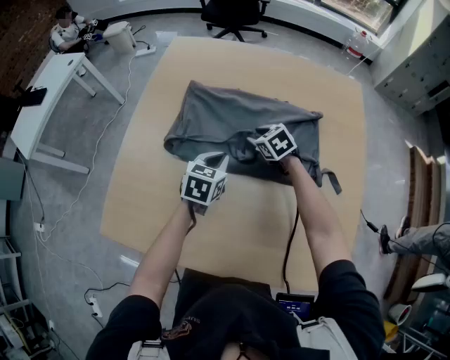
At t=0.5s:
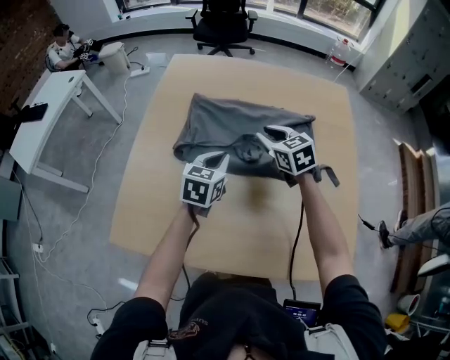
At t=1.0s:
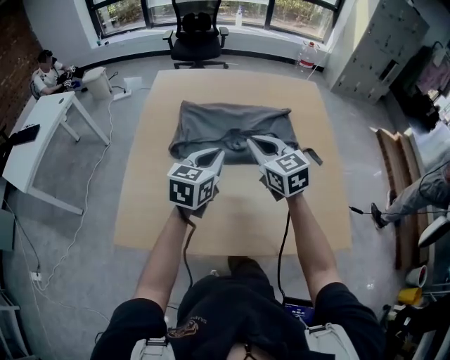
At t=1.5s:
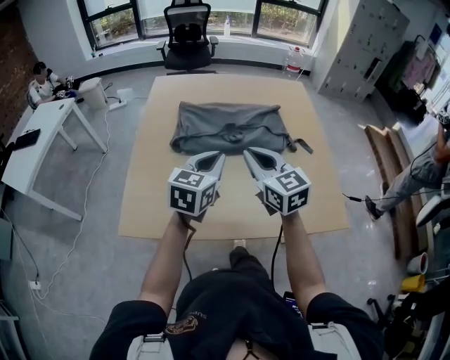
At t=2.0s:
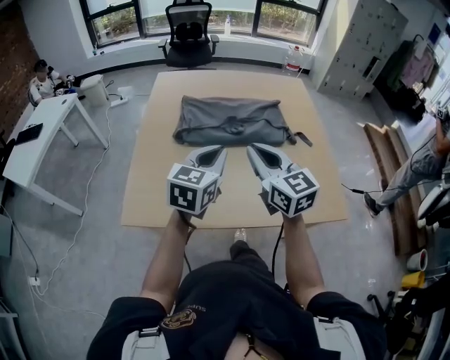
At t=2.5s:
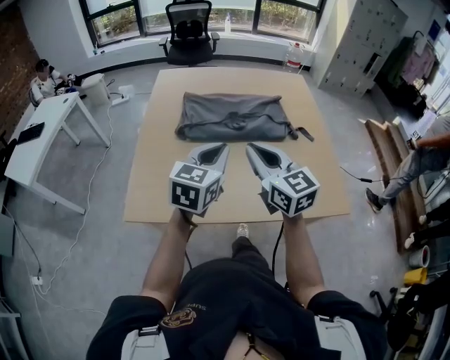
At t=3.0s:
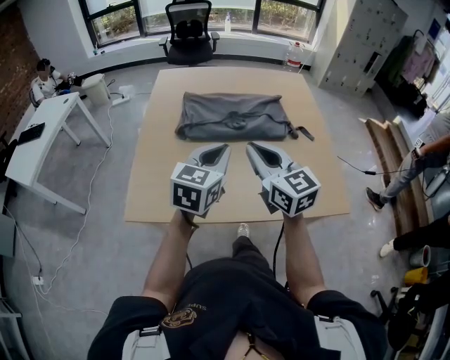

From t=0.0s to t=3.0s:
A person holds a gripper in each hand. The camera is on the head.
From t=0.0s to t=1.5s: Both grippers move backward and upward, about 35 cm. The right gripper angles its fingers upward, by some 40 degrees, and closes. Meanwhile the left gripper turns by about 30 degrees.
From t=1.5s to t=3.0s: Both grippers move backward, roughly 5 cm.

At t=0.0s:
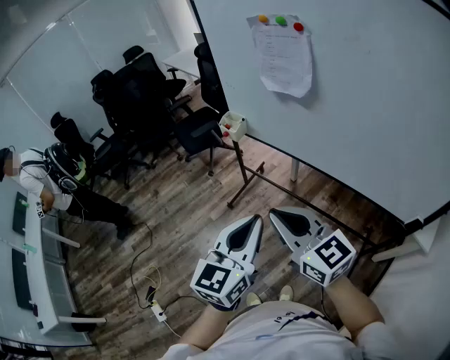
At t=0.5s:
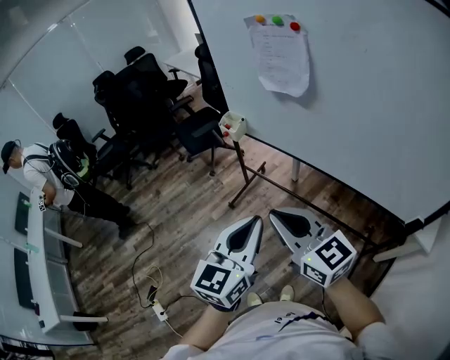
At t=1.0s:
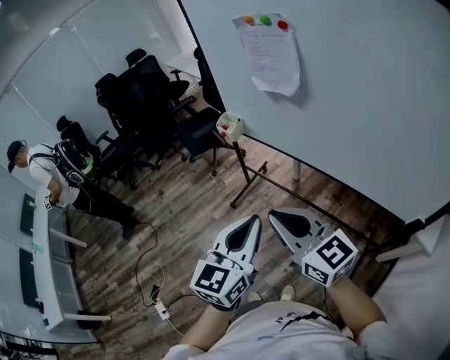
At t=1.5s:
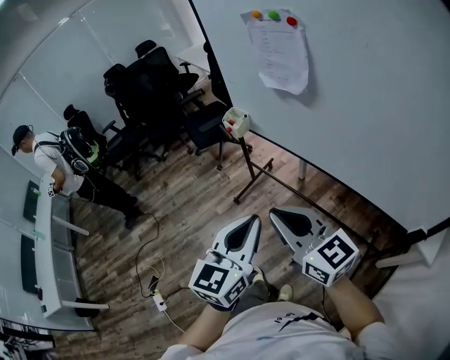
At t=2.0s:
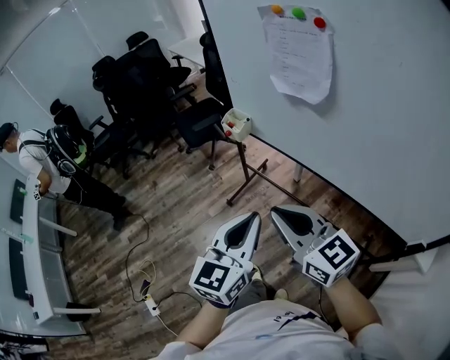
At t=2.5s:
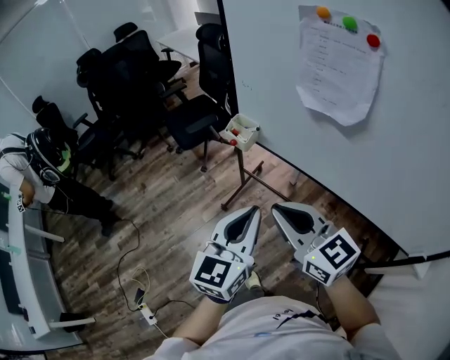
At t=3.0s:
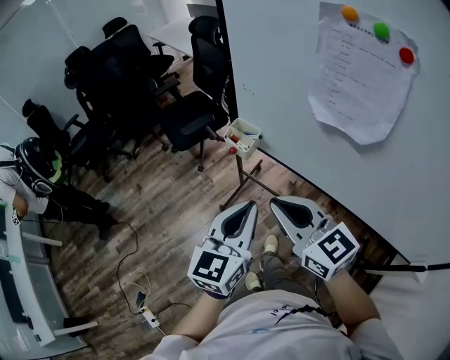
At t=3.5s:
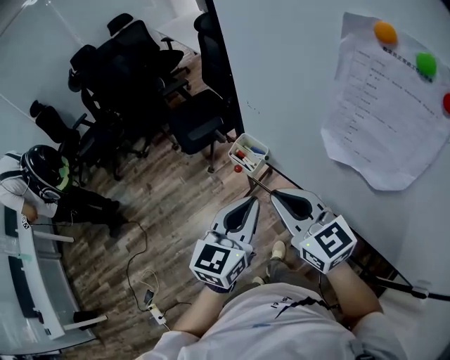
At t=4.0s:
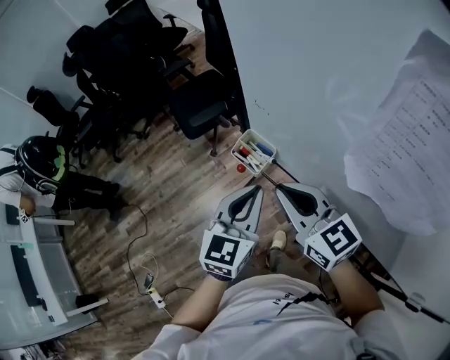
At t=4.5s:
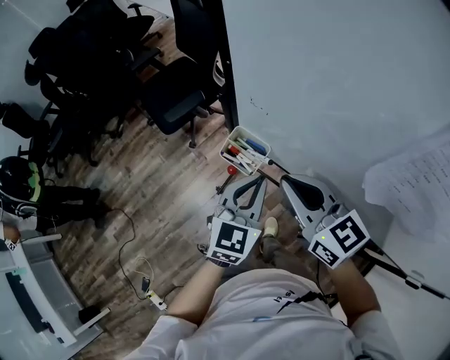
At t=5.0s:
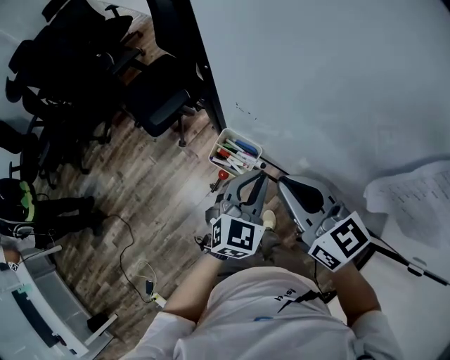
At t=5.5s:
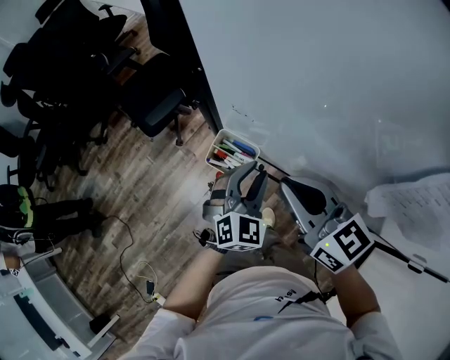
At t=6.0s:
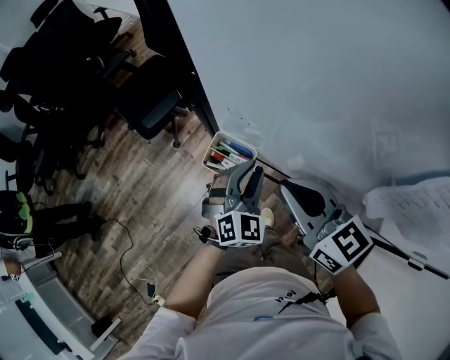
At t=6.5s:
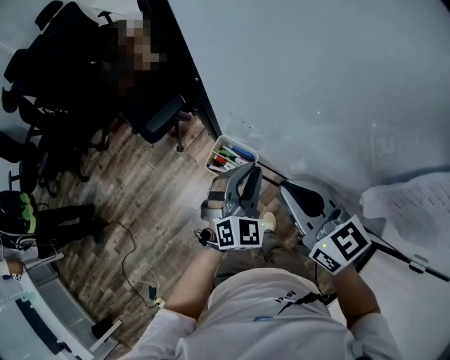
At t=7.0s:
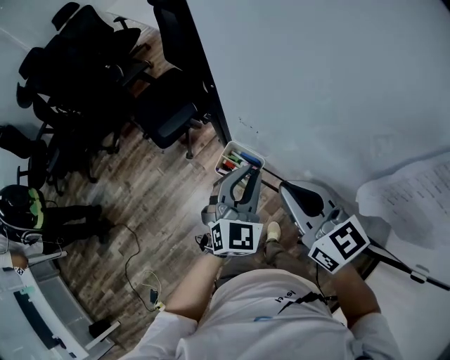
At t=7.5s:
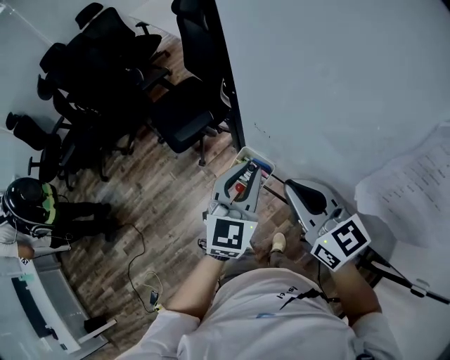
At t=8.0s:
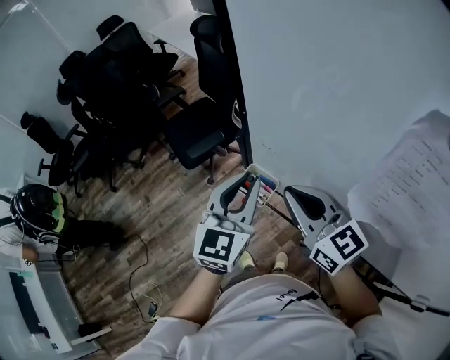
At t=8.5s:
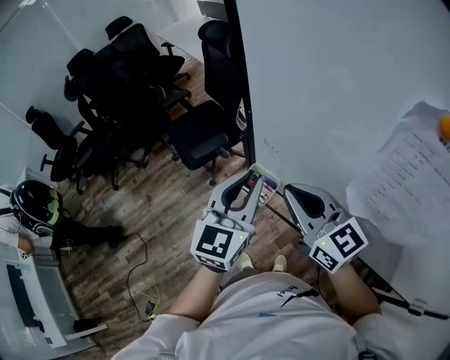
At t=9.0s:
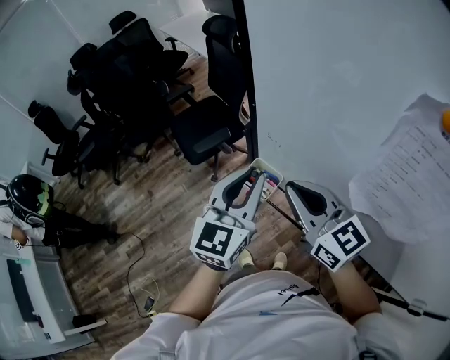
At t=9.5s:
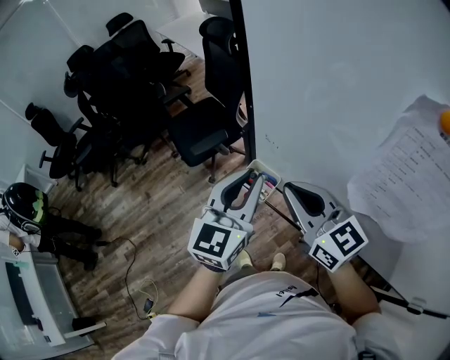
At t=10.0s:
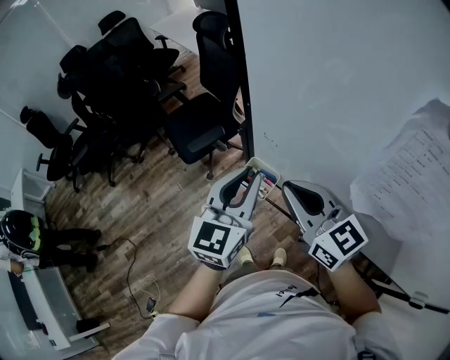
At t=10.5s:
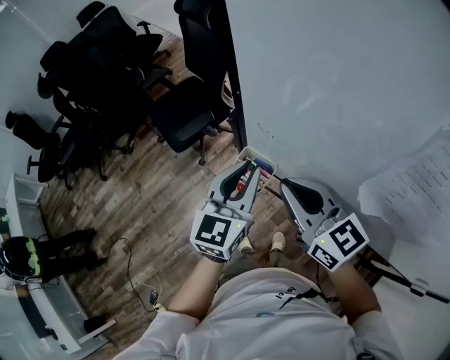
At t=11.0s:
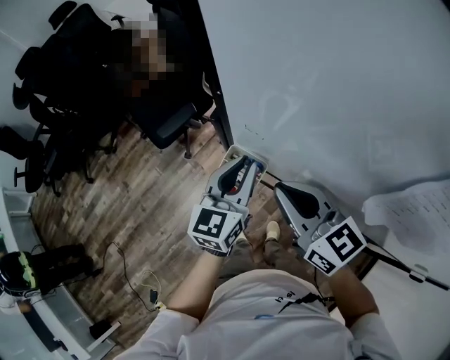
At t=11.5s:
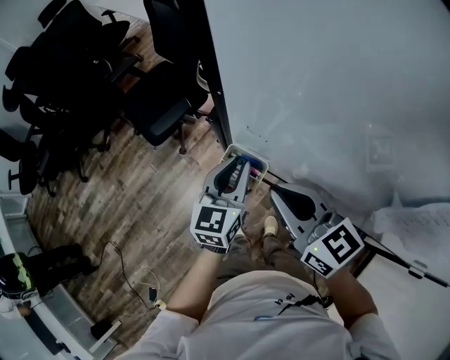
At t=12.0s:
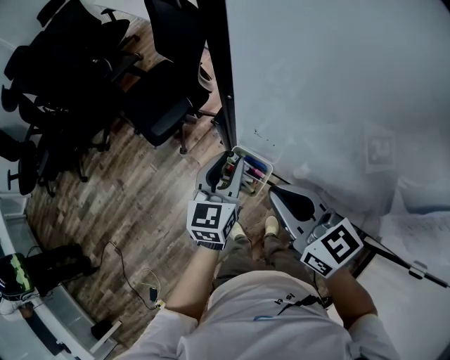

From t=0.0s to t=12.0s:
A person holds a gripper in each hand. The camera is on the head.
From t=0.0s to t=2.0s: Both grippers travel together forward, about 10 cm.
From t=2.0s to t=4.0s: The grippers both shift forward by approximately 40 cm.
From t=4.0s to t=6.0s: The right gripper moves forward, some 5 cm; the left gripper moves downward and forward, roughly 15 cm, rotates approximately 40 degrees, and opens.
From t=6.0s to t=8.0s: The right gripper is displaced upward by roughly 10 cm; the left gripper is displaced upward by roughly 20 cm, and turns by roughly 40 degrees.
From t=8.0s to t=10.0s: There are only small adjustments of the grippers.
From t=10.0s to t=12.0s: The left gripper shifts roughly 20 cm downward and forward. Meanwhile the right gripper is displaced downward by some 10 cm.

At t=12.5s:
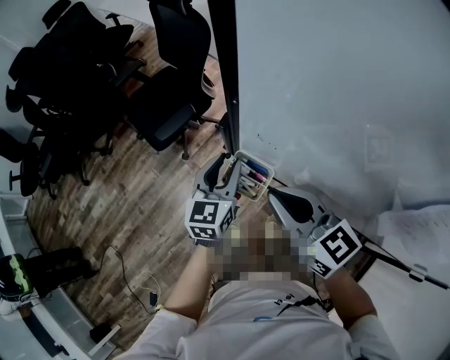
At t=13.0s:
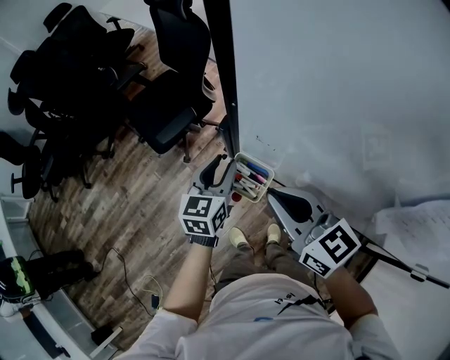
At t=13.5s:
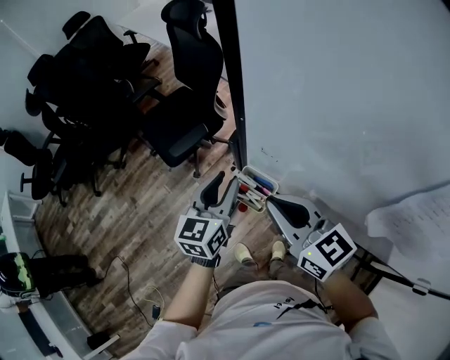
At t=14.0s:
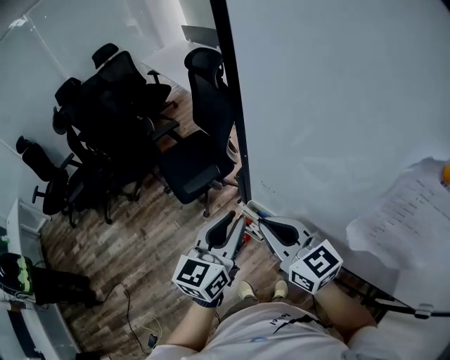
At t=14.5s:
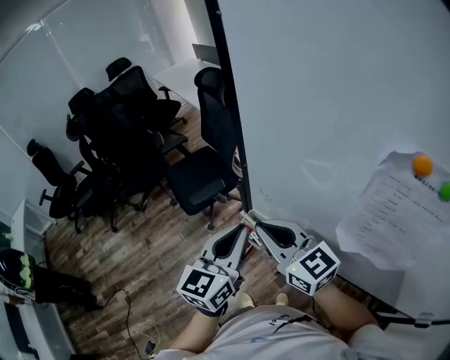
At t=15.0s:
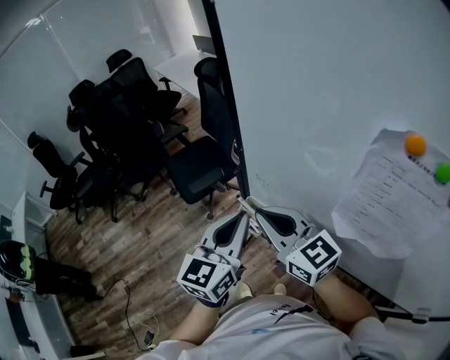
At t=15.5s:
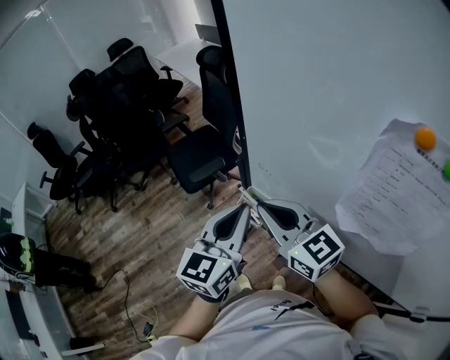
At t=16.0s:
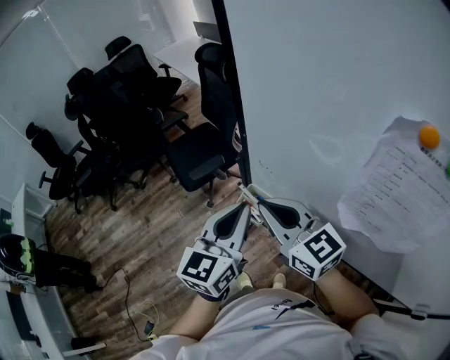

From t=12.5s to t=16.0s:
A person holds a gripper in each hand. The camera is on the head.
From t=12.5s to t=14.5s: The left gripper travels upward and backward by about 25 cm, and closes its fingers. The right gripper is displaced upward by some 10 cm.
From t=14.5s to t=16.0s: The grippers move only a little.

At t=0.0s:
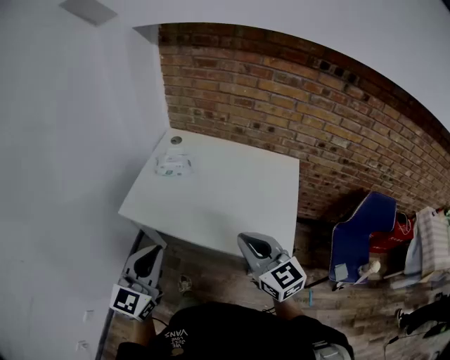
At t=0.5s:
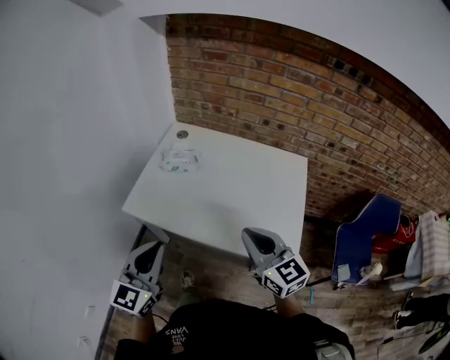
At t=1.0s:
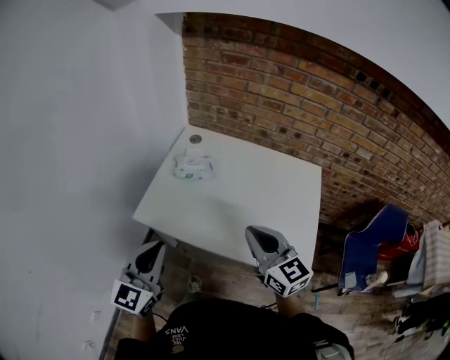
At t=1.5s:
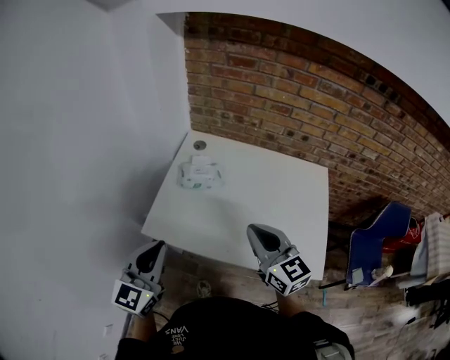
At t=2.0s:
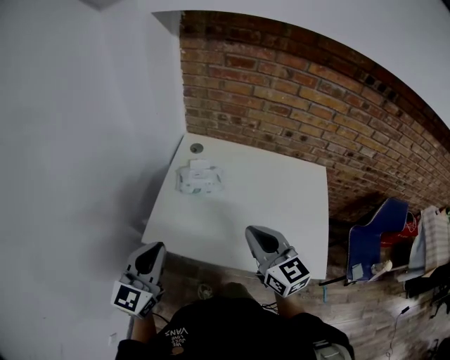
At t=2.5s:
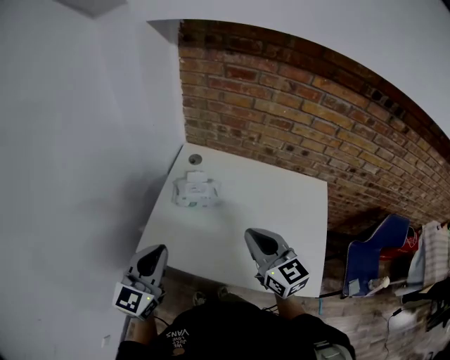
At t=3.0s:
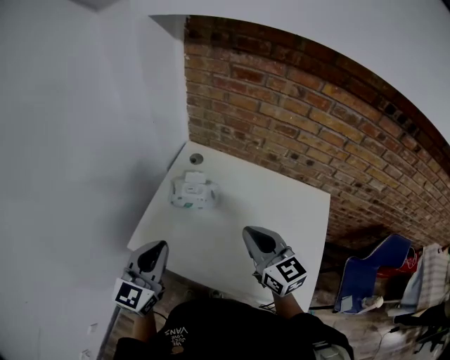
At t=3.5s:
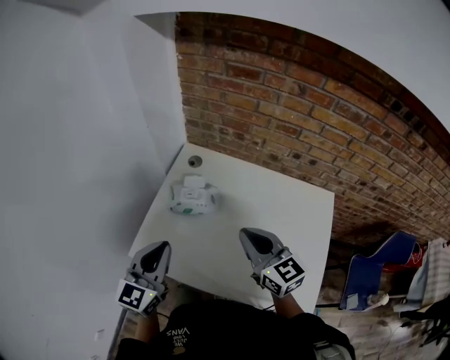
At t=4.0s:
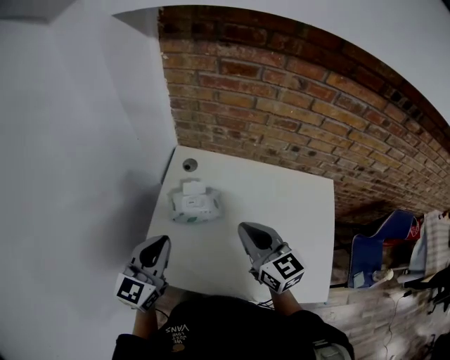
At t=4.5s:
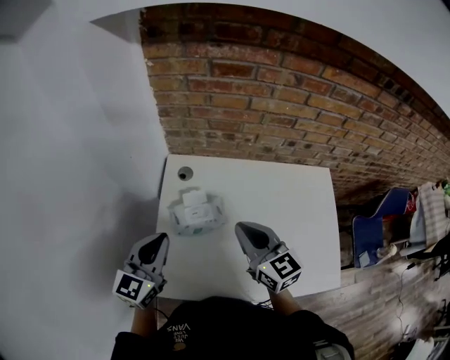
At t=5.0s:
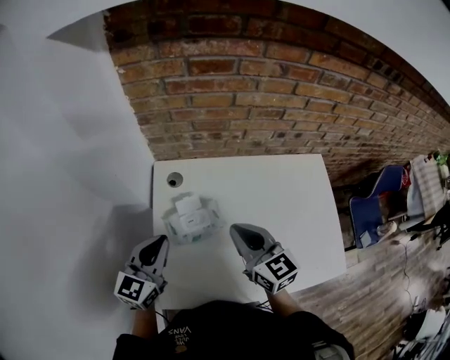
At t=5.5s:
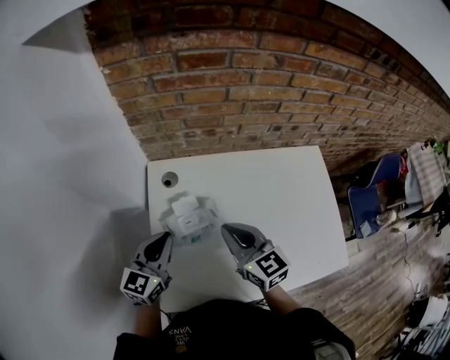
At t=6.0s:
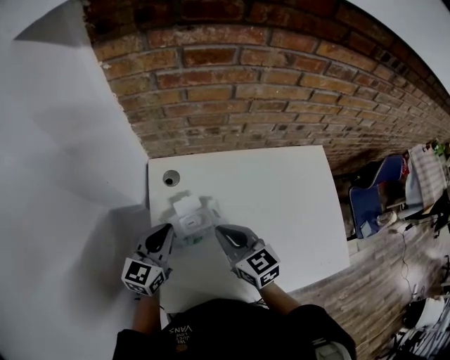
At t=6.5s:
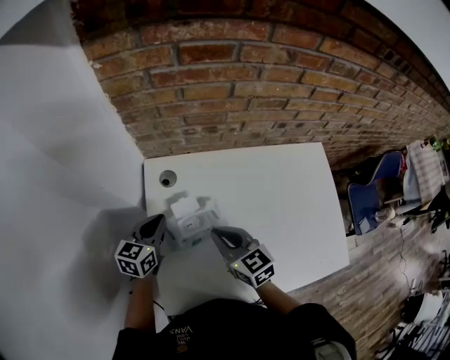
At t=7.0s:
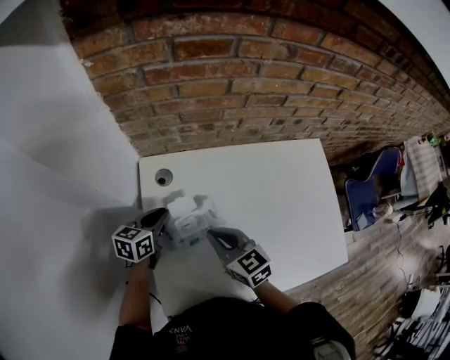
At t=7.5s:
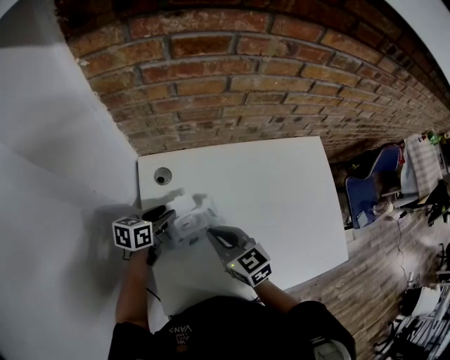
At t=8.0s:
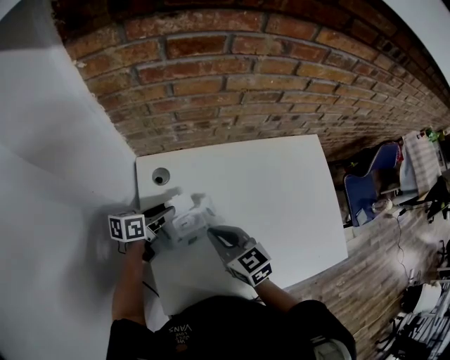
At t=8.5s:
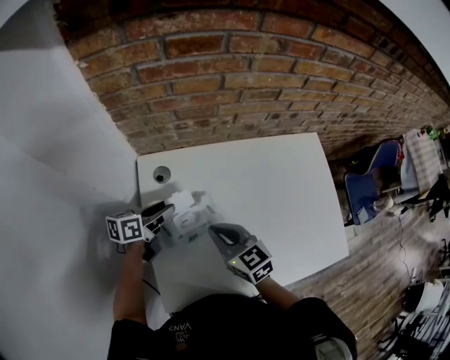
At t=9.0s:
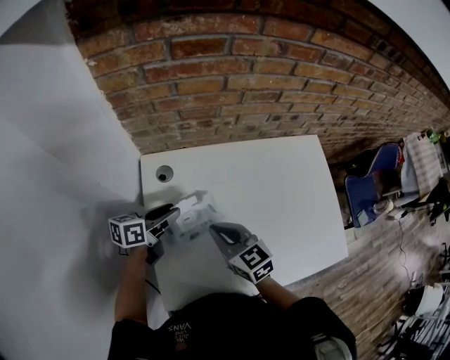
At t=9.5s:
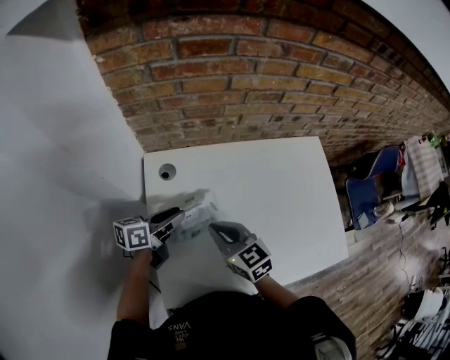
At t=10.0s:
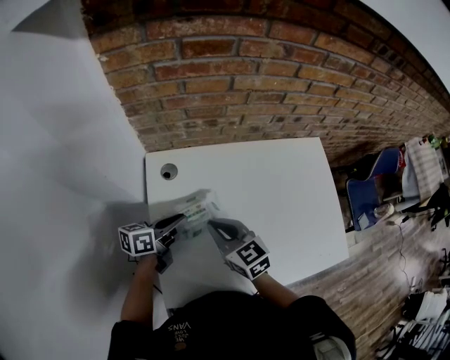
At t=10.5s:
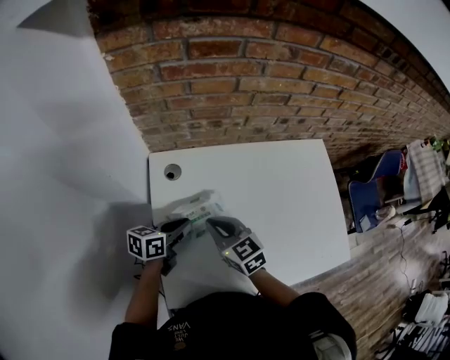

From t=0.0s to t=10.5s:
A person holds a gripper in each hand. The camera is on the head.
From t=0.0s to t=2.0s: Both grippers travel together forward and to the left, about 20 cm.
From t=2.0s to t=4.0s: The grippers both shift forward by approximately 15 cm.
From t=4.0s to t=6.5s: The right gripper goes approximately 20 cm downward, to the left and forward; the left gripper shifts about 25 cm forward and downward, and changes its angle by some 30 degrees.
From t=6.5s to t=8.5s: The left gripper moves some 5 cm, turns by approximately 30 degrees, and opens.
From t=8.5s to t=10.5s: The left gripper shifts some 5 cm backward, and closes.
